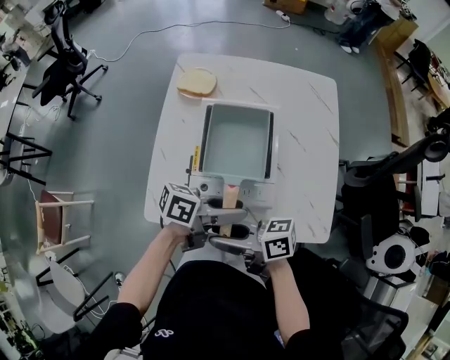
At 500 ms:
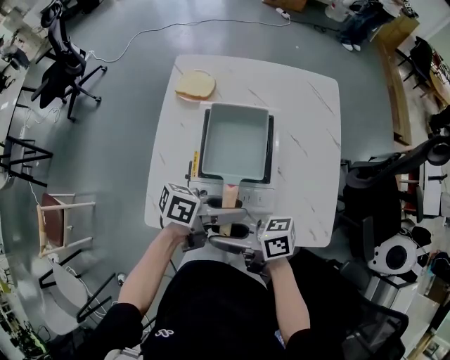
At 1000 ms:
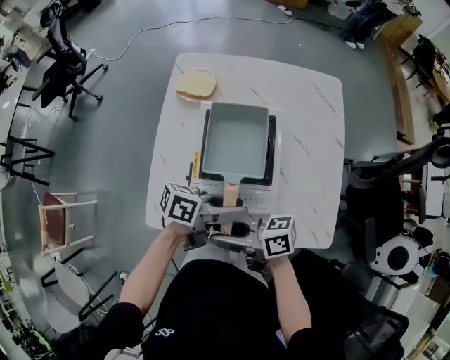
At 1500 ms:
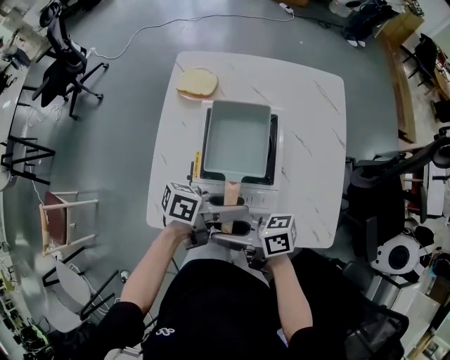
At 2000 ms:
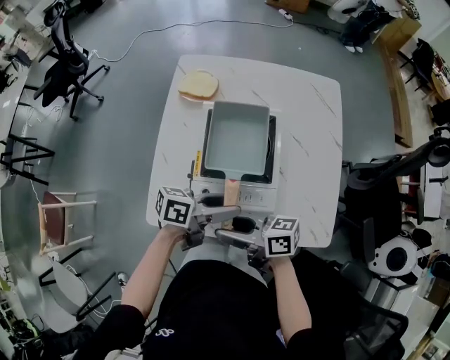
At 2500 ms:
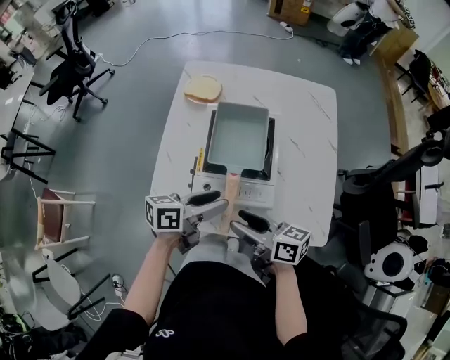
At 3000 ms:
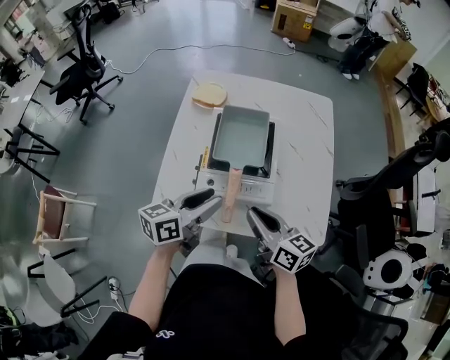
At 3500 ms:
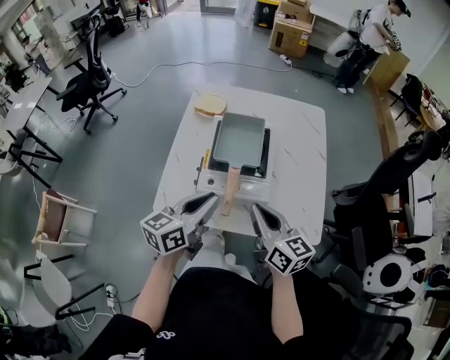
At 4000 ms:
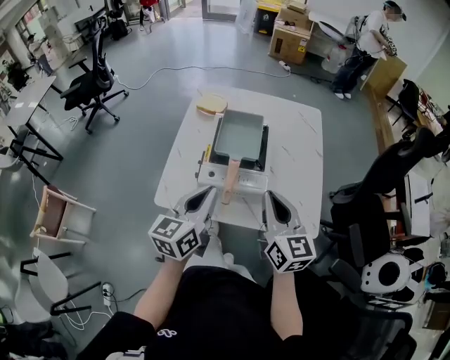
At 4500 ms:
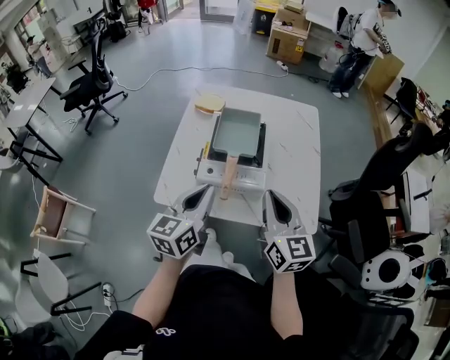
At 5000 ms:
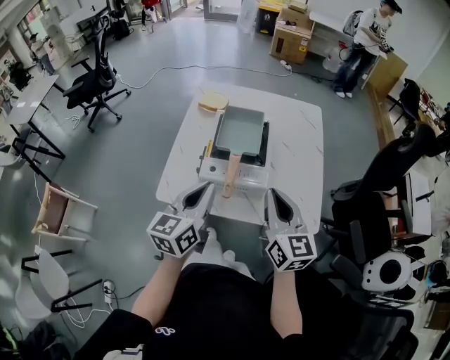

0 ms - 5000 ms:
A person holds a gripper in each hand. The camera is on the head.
0 ms - 2500 ms: The right gripper shifts by about 5 cm, and rotates about 20 degrees. The left gripper changes place by some 5 cm, and rotates some 20 degrees.
2500 ms - 5000 ms: The right gripper goes some 15 cm upward and to the right, rotates some 50 degrees, and closes up. The left gripper heads upward and backward, covering about 15 cm, turns by some 50 degrees, and closes up.

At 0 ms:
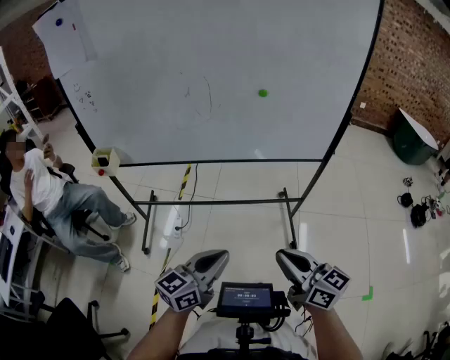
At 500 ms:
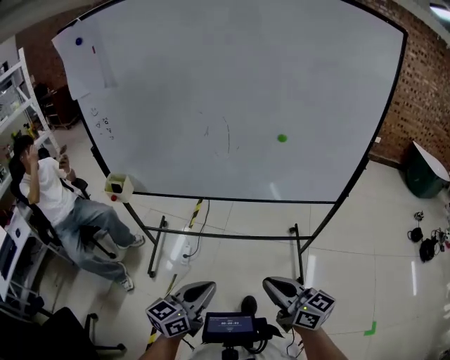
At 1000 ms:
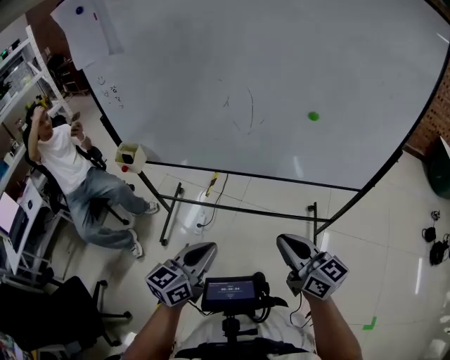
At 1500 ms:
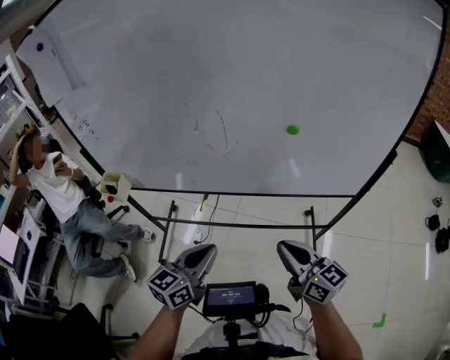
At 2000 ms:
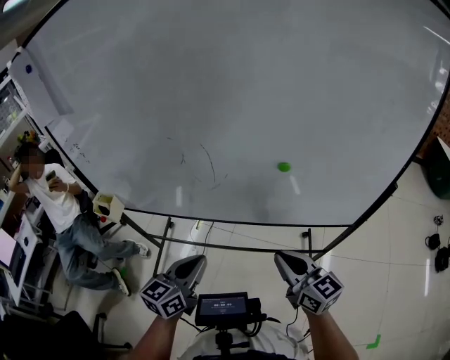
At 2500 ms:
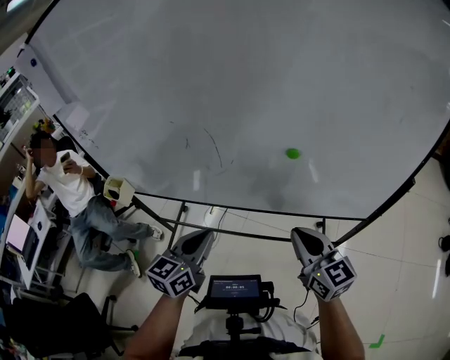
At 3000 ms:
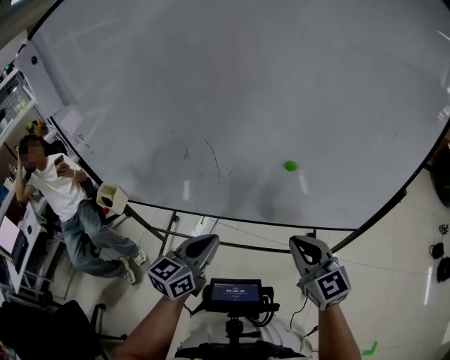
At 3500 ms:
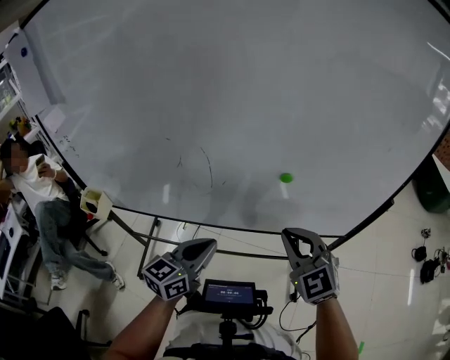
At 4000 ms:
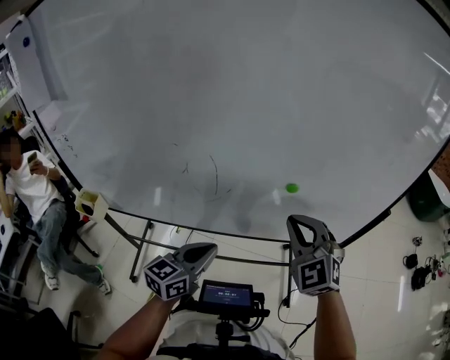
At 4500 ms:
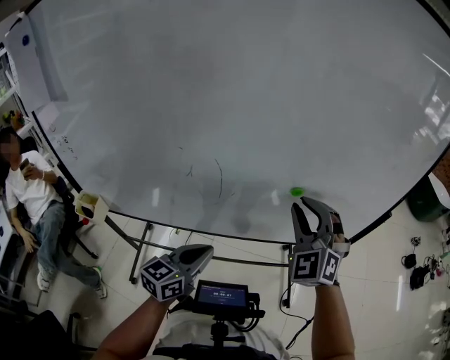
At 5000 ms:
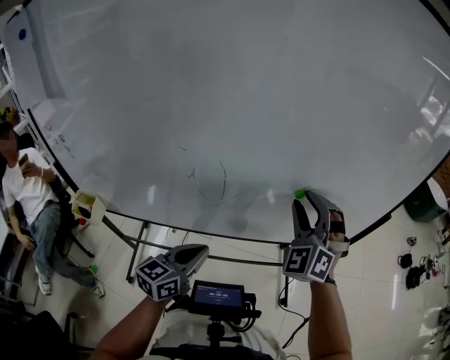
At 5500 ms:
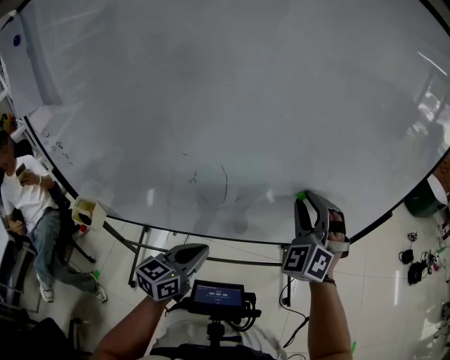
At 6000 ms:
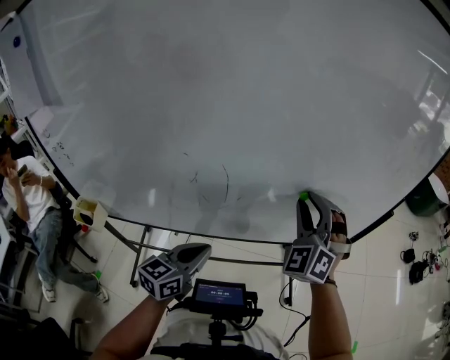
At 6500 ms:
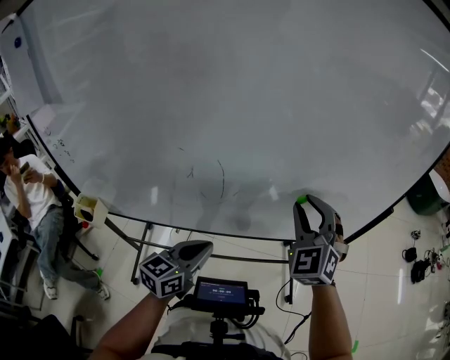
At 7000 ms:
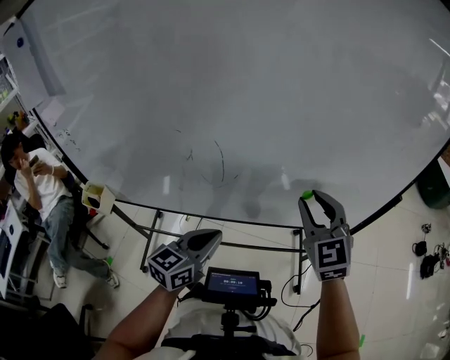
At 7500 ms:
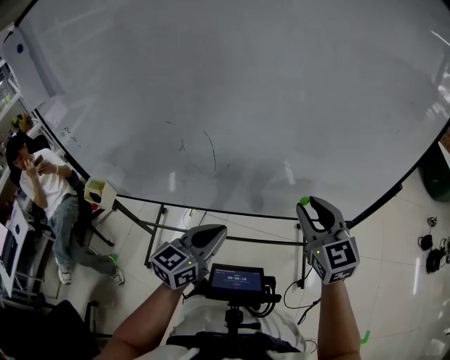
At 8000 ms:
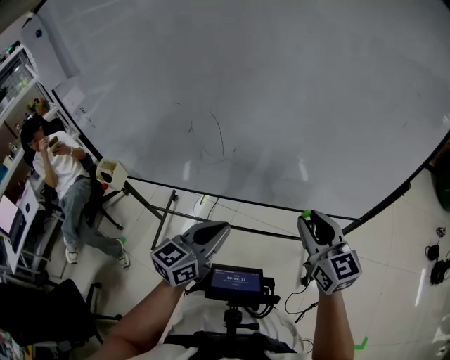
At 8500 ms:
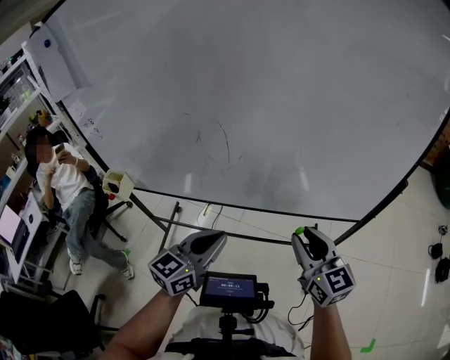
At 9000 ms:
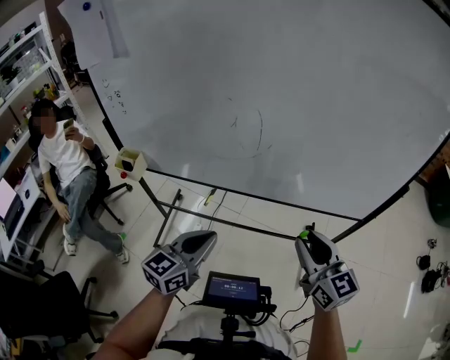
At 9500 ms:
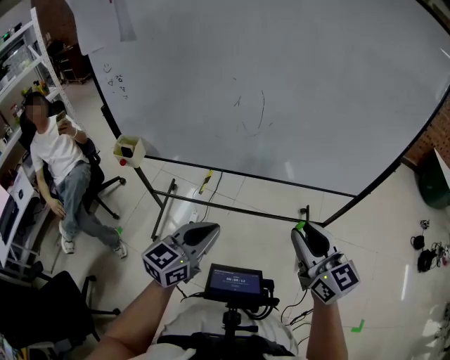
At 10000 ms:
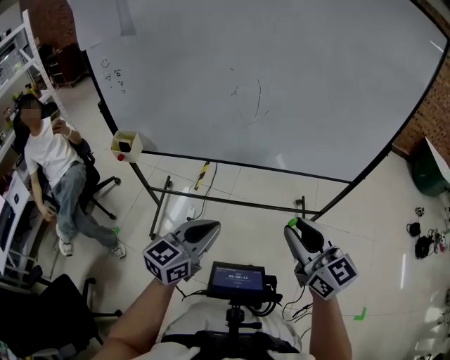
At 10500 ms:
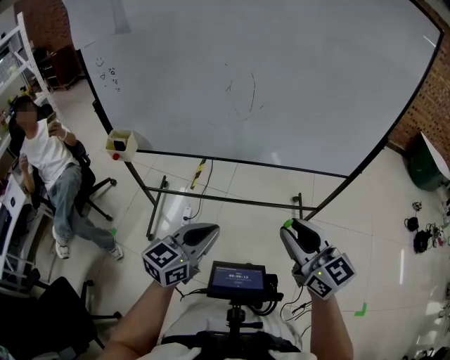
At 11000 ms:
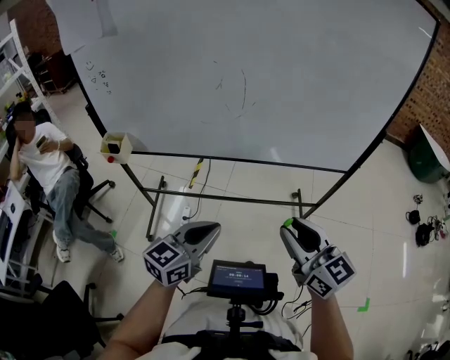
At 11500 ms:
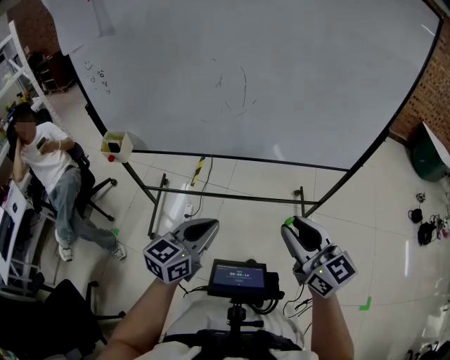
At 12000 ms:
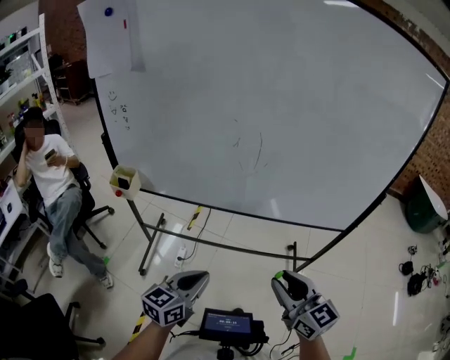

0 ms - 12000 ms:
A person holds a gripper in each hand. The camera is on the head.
0 ms - 2000 ms: Both grippers travel together forward, about 30 cm. The left gripper turns by some 20 degrees.
2000 ms - 4000 ms: The left gripper moves forward, approximately 10 cm; the right gripper shifts some 15 cm forward and upward, and twists approximately 60 degrees counterclockwise, seen from behind.
4000 ms - 6000 ms: The left gripper shifts about 5 cm to the left. The right gripper goes roughly 5 cm forward, changes its angle by about 30 degrees, and opens.
6000 ms - 8000 ms: The left gripper moves to the right and backward, roughly 10 cm; the right gripper moves backward, to the right and downward, about 15 cm, and rolls clockwise, seen from behind, by approximately 60 degrees.
8000 ms - 10000 ms: Both grippers travel together backward and to the left, about 25 cm.
10000 ms - 12000 ms: The grippers make only small movements.

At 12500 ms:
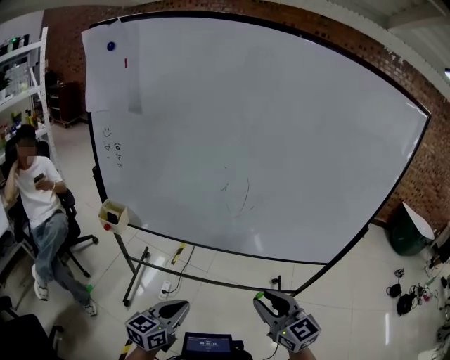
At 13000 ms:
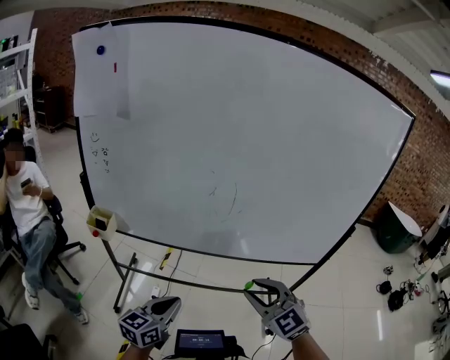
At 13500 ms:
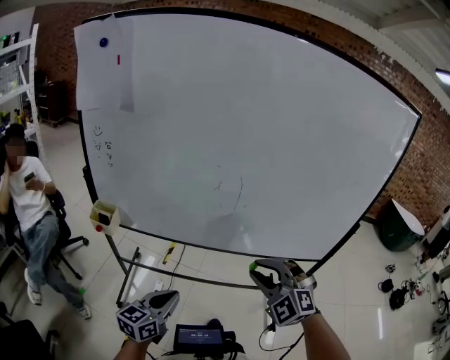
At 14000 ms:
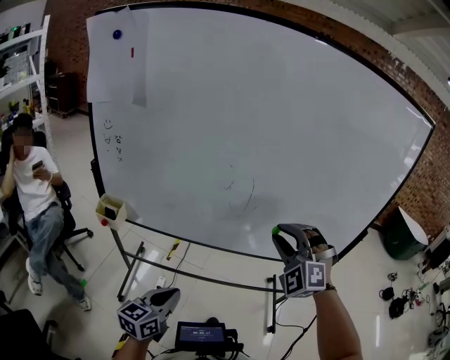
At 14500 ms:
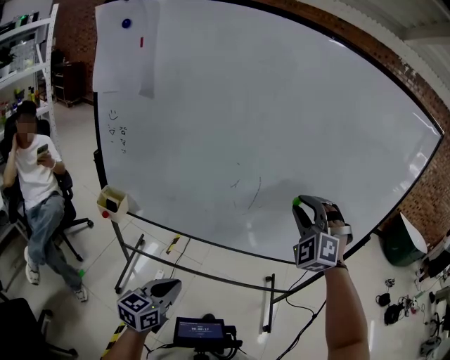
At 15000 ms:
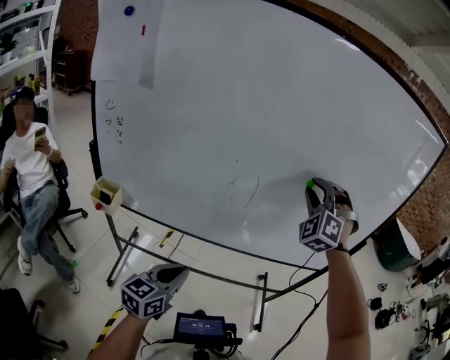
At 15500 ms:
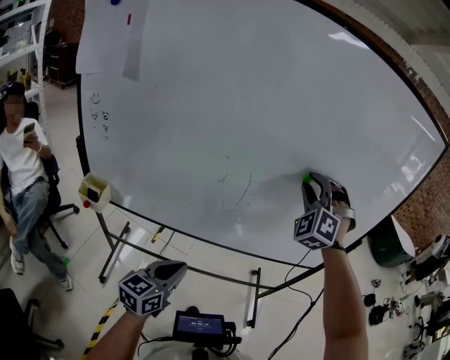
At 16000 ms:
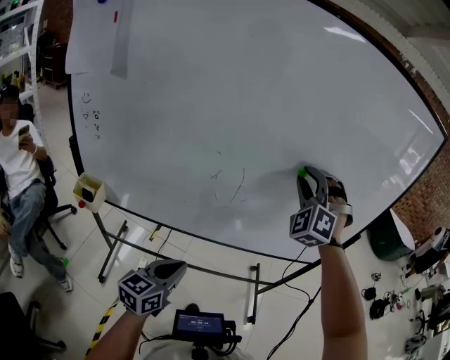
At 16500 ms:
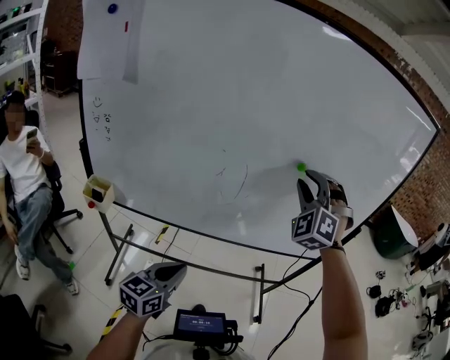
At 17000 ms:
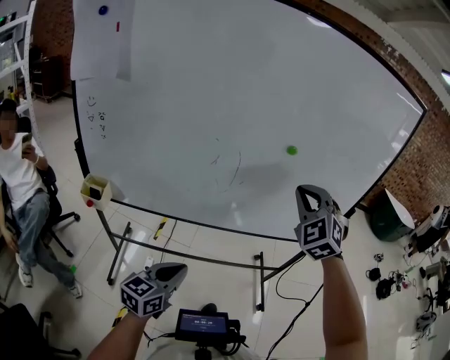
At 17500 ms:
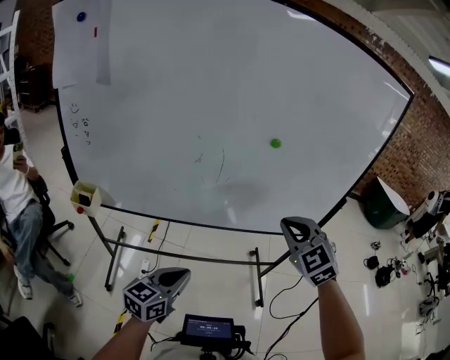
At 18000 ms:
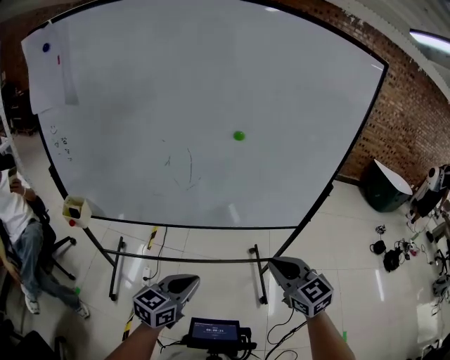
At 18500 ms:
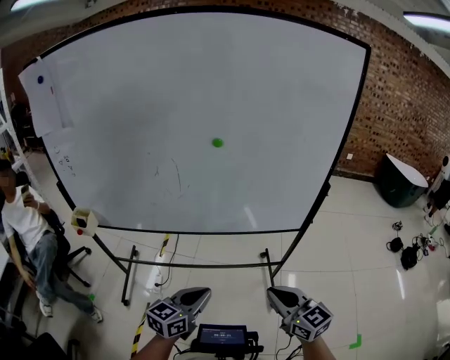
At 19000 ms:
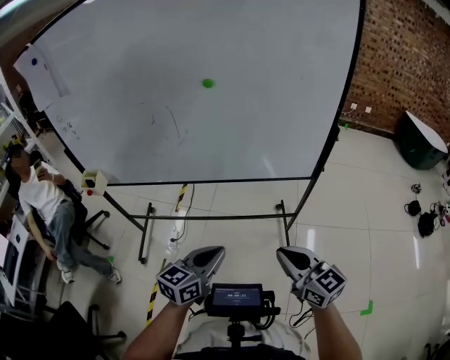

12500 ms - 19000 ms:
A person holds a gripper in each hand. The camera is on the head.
12500 ms - 14500 ms: The right gripper goes some 25 cm forward and upward, and twists some 70 degrees counterclockwise, seen from behind. The left gripper travels forward by approximately 5 cm.
14500 ms - 17000 ms: Both grippers move to the right, approximately 5 cm. The right gripper reaches about 10 cm forward, then returns, turns by some 20 degrees, and closes up. Meanwhile the left gripper moves roughly 10 cm forward and comes back.
17000 ms - 19000 ms: The left gripper moves to the right, roughly 30 cm. Meanwhile the right gripper shifts approximately 40 cm to the right, backward and downward, and rotates around the line of its fingers by roughly 70 degrees, clockwise from behind.

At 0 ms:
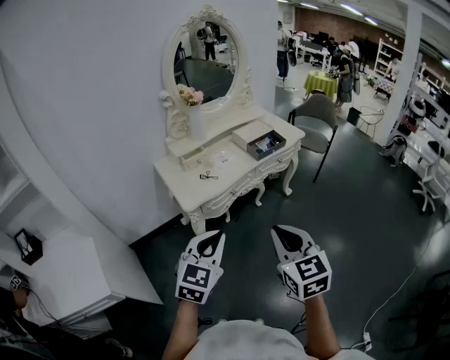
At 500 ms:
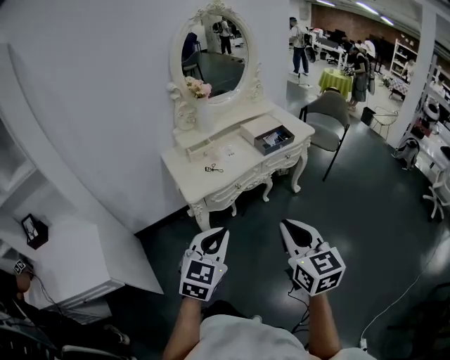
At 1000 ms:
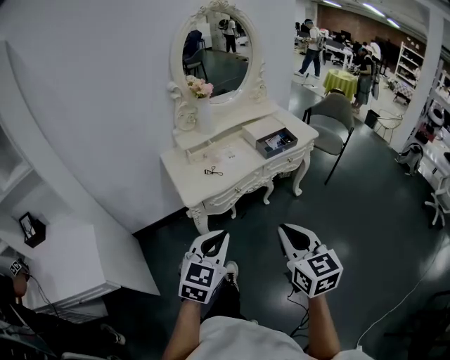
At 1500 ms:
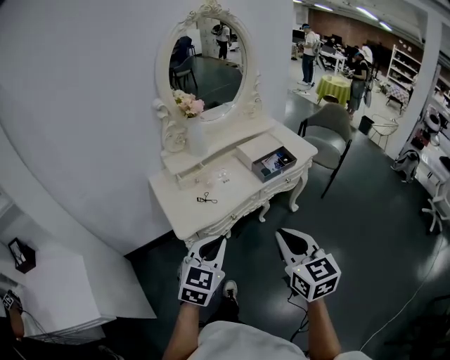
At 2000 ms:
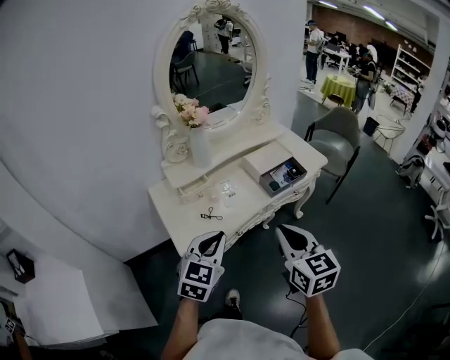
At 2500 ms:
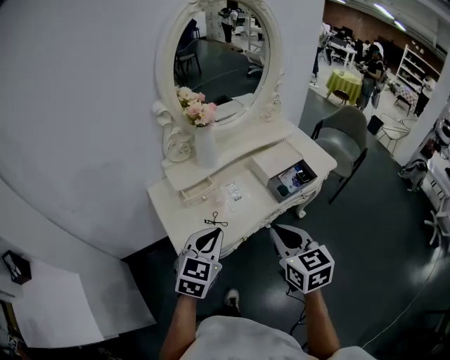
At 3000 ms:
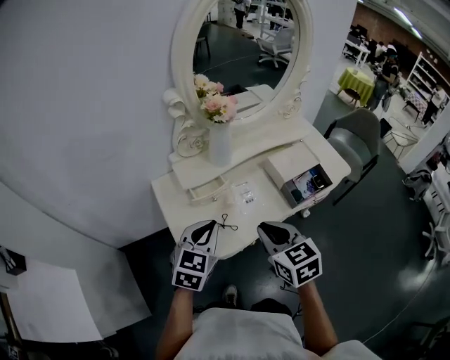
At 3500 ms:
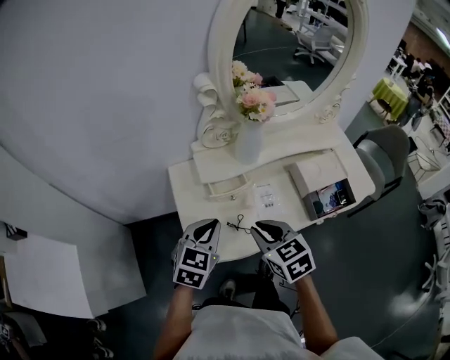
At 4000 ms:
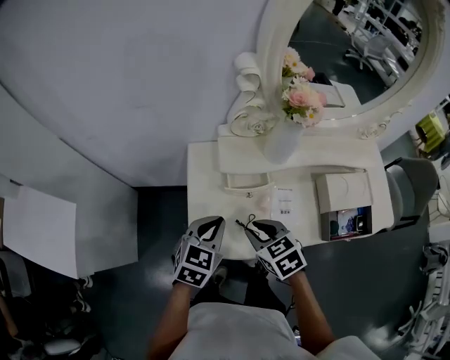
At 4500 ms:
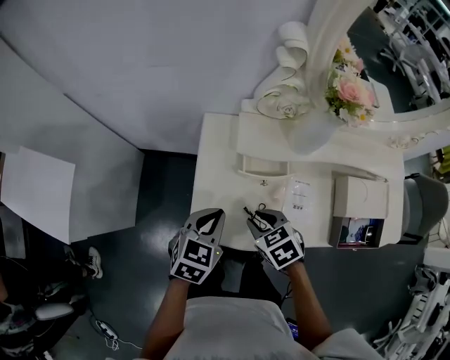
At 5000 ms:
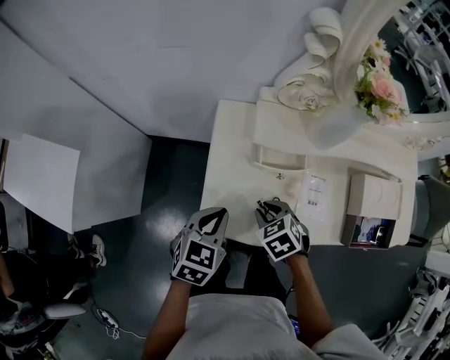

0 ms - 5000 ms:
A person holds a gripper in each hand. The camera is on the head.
0 ms - 2500 ms: Both grippers travel together forward, approximately 35 cm.
2500 ms - 5000 ms: The left gripper travels downward by some 15 cm, and turns by about 40 degrees, while the right gripper heads downward, covering roughly 30 cm, and tilts its fingers some 40 degrees downward.
